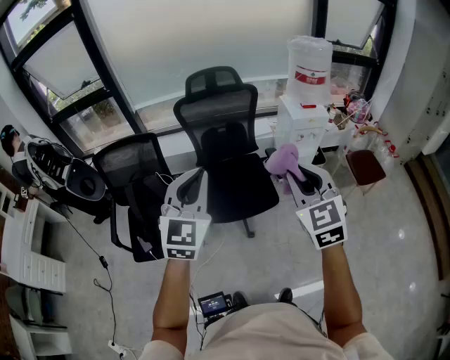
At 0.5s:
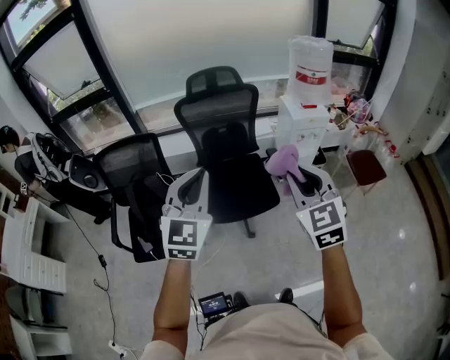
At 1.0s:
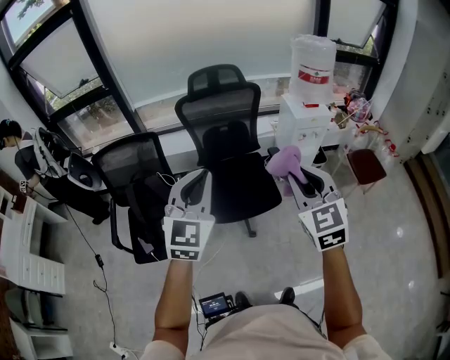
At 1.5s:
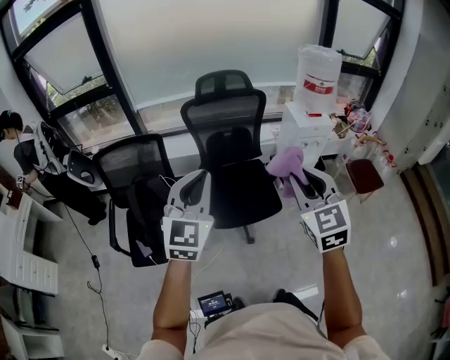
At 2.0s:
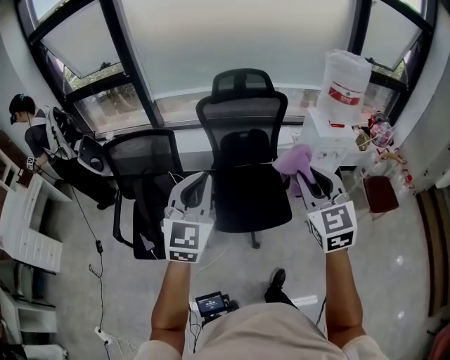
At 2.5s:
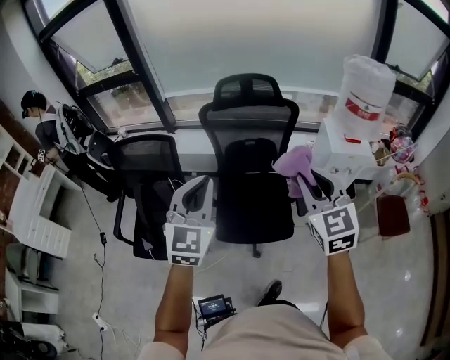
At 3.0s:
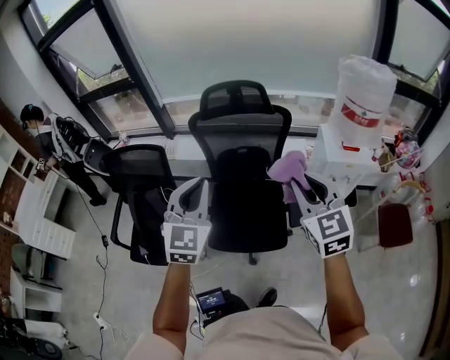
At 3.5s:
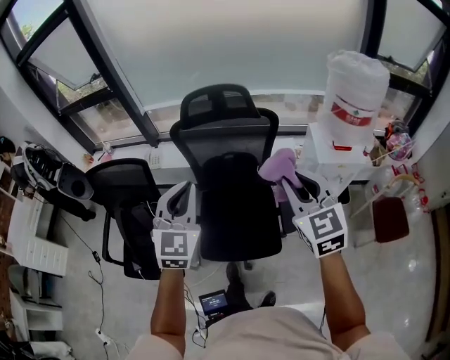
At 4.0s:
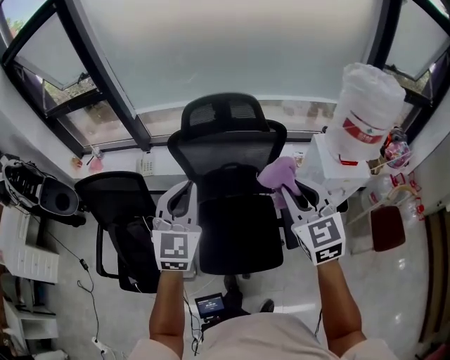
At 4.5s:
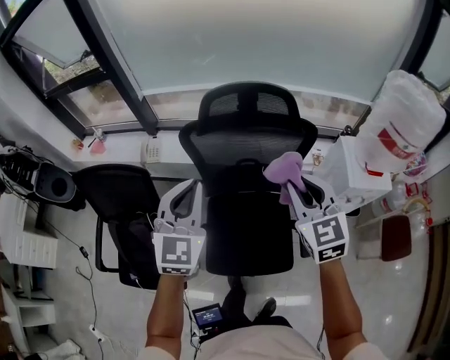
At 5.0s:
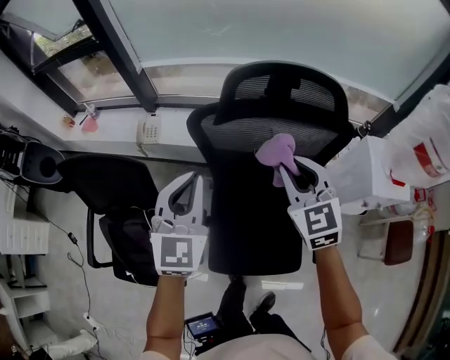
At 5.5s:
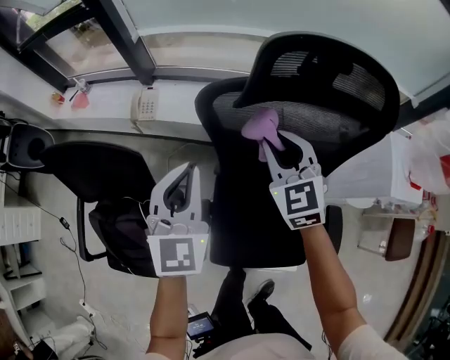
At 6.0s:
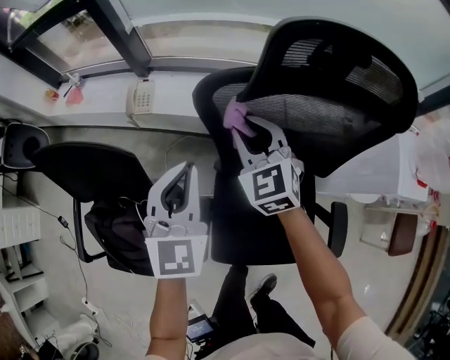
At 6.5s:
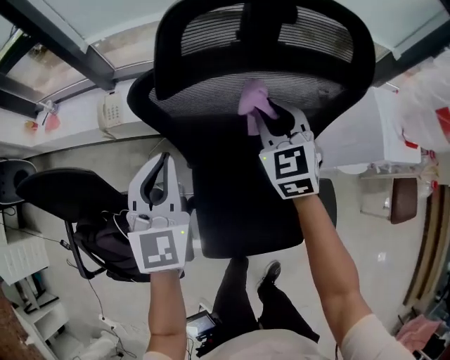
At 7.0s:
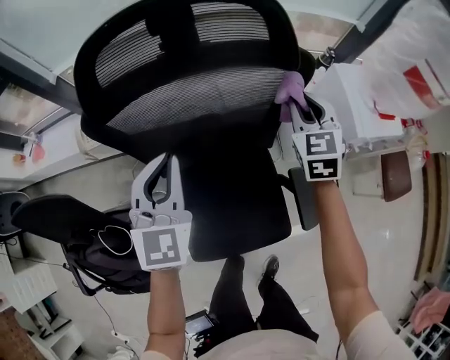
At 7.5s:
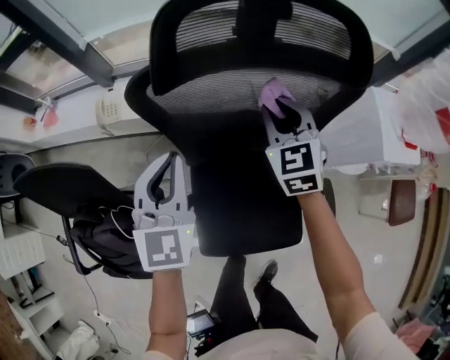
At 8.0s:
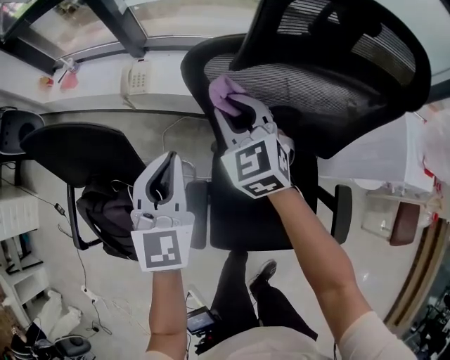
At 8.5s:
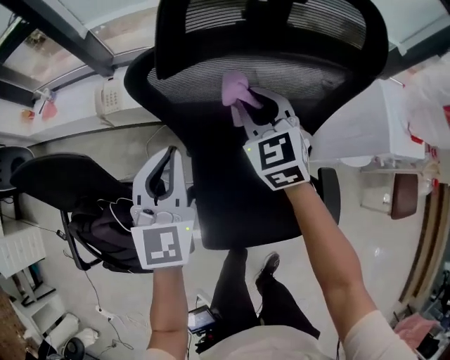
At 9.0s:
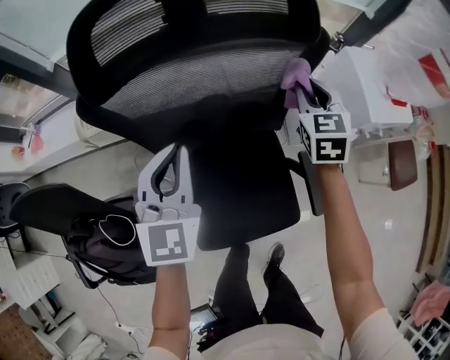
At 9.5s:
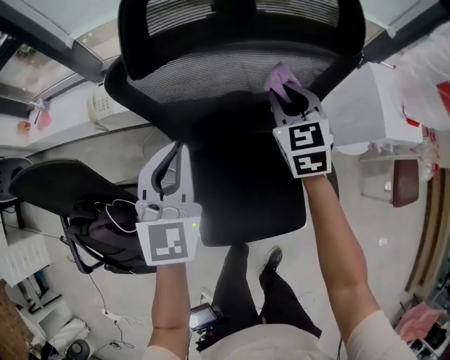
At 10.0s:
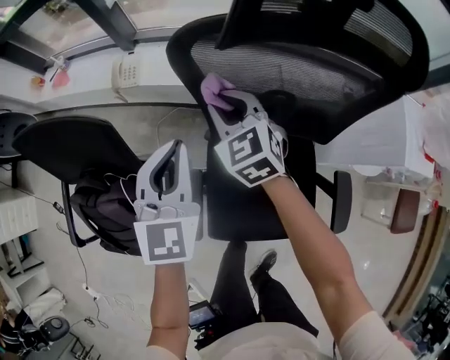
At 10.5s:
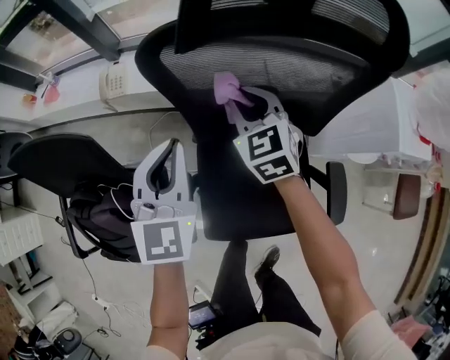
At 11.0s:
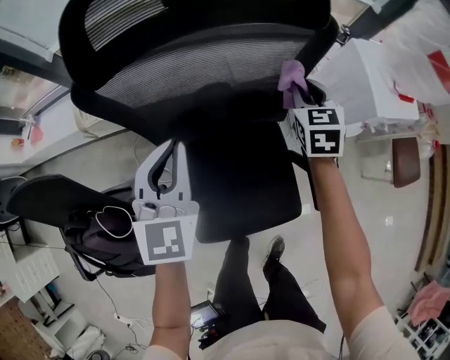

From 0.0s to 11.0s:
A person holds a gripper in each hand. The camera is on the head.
From 0.0s to 2.0s: The right gripper is displaced forward by roughly 10 cm; the left gripper is displaced forward and to the left by about 10 cm.
From 2.0s to 3.5s: Both grippers move forward and to the right, some 25 cm.
From 3.5s to 5.5s: The right gripper heads forward, to the left and downward, covering about 50 cm. Meanwhile the left gripper travels forward, downward and to the left by about 40 cm.
From 5.5s to 7.5s: The left gripper heads to the right and downward, covering some 10 cm, while the right gripper swings left and right, roughly 40 cm each way, with 2 reversals.
From 7.5s to 9.0s: The left gripper ends up roughly 10 cm from where it was. The right gripper changes place by about 20 cm, and rotates some 20 degrees.

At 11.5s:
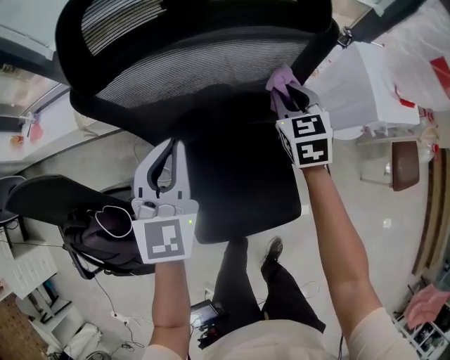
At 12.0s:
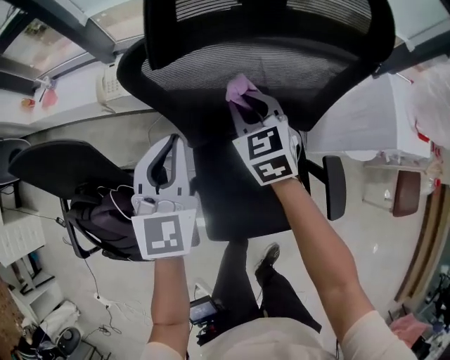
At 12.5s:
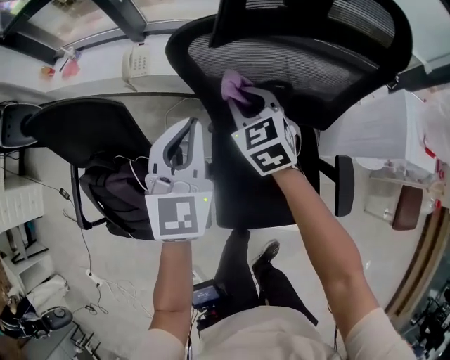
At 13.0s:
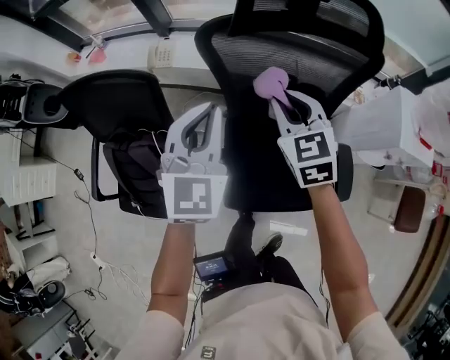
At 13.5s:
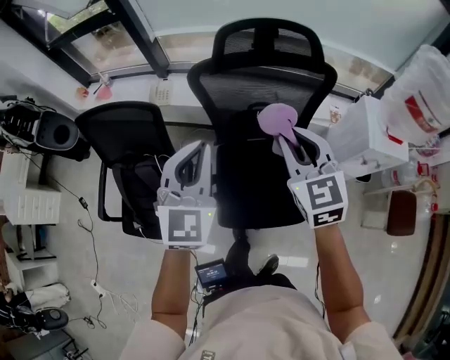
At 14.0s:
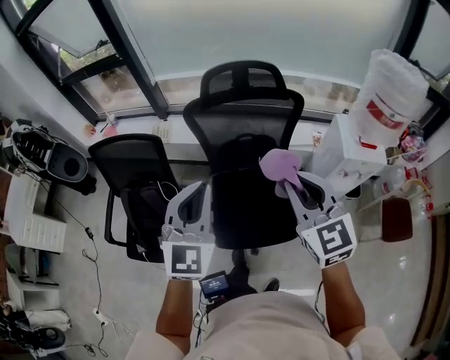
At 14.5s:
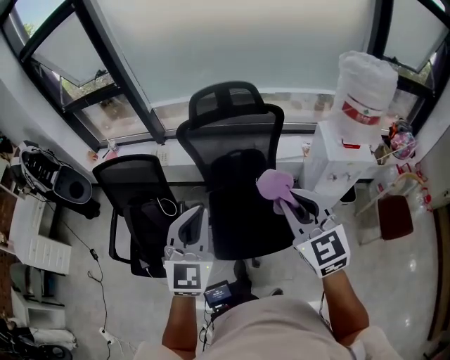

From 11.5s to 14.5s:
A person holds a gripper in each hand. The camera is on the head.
From 11.5s to 13.0s: The right gripper shifts roughly 30 cm to the left and upward, and rotates approximately 30 degrees, while the left gripper shifts some 20 cm to the left, upward and backward.
From 13.0s to 14.5s: The left gripper heads backward and upward, covering roughly 35 cm. Meanwhile the right gripper moves backward, upward and to the right, some 50 cm.

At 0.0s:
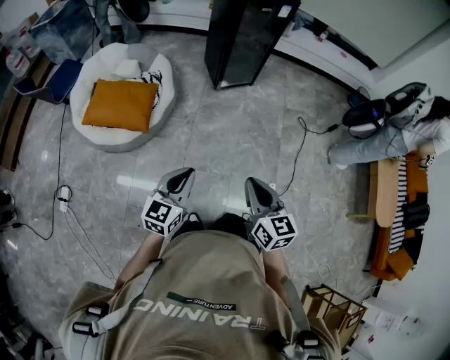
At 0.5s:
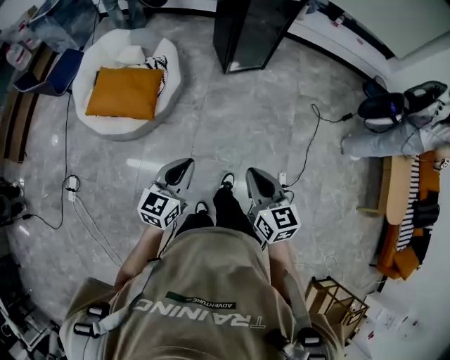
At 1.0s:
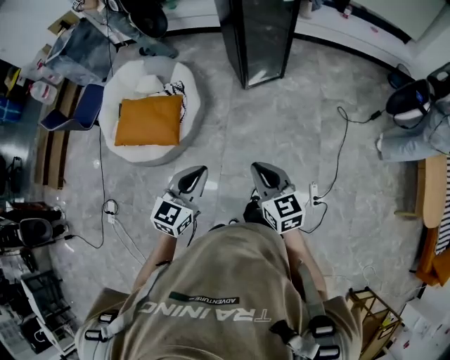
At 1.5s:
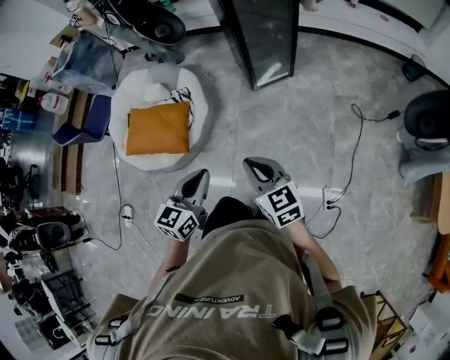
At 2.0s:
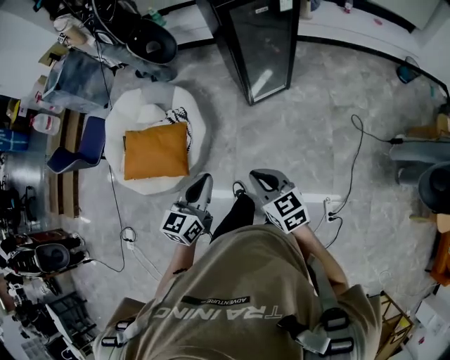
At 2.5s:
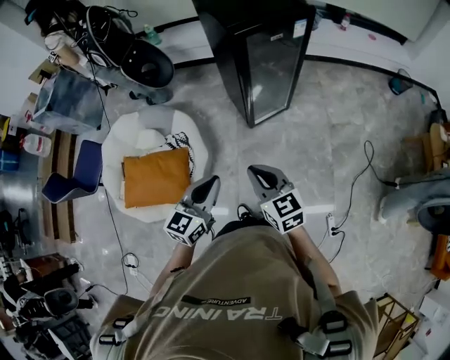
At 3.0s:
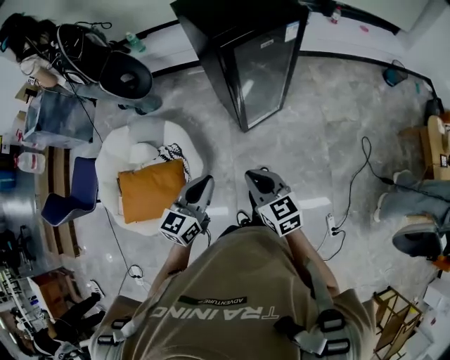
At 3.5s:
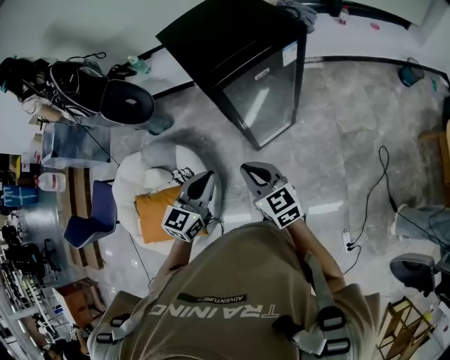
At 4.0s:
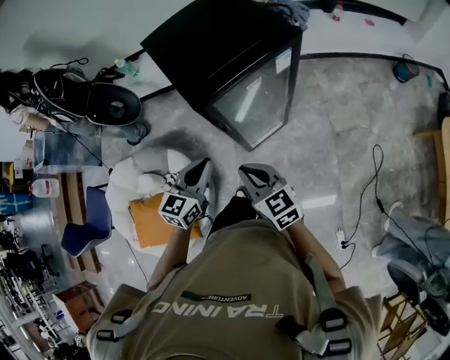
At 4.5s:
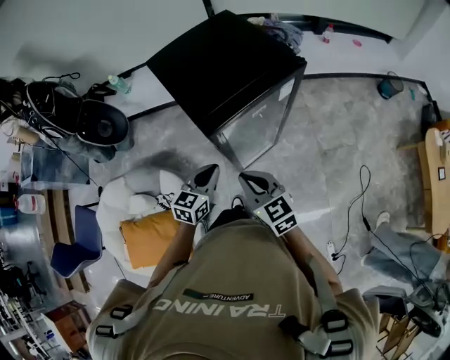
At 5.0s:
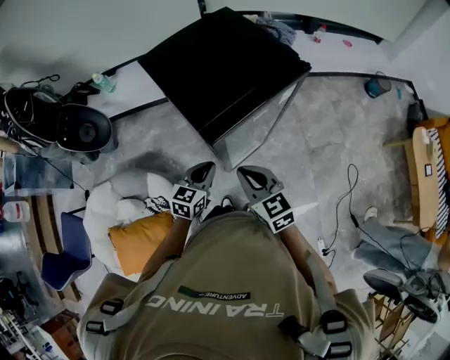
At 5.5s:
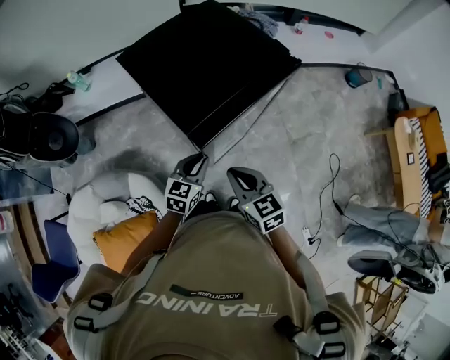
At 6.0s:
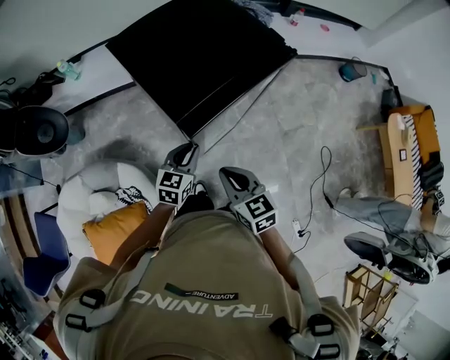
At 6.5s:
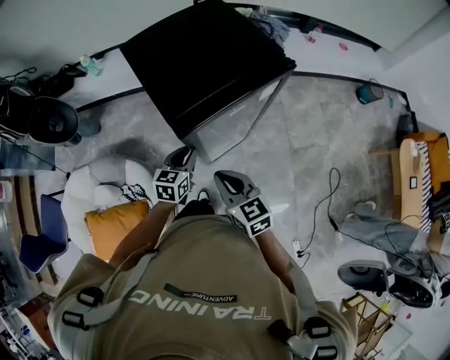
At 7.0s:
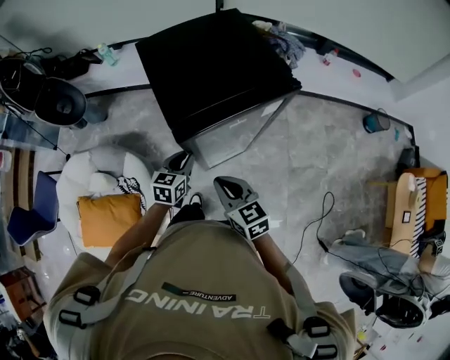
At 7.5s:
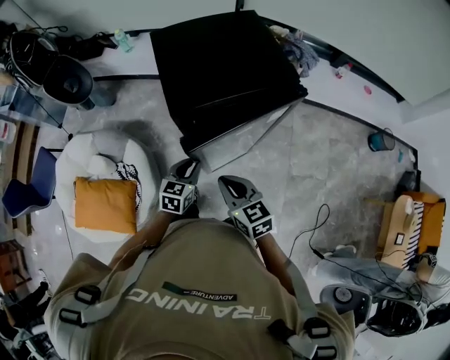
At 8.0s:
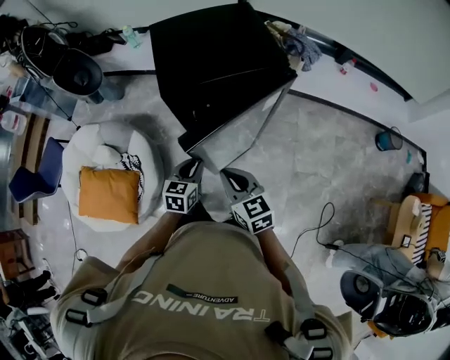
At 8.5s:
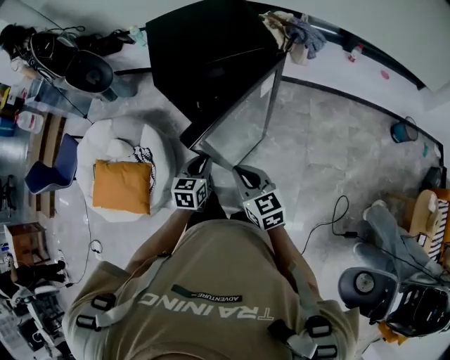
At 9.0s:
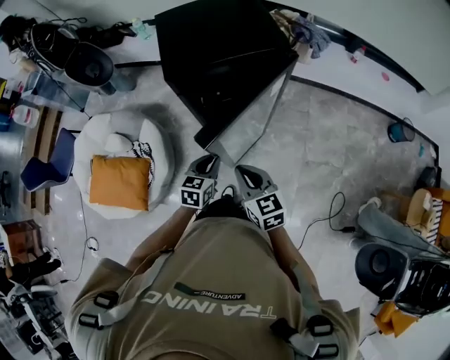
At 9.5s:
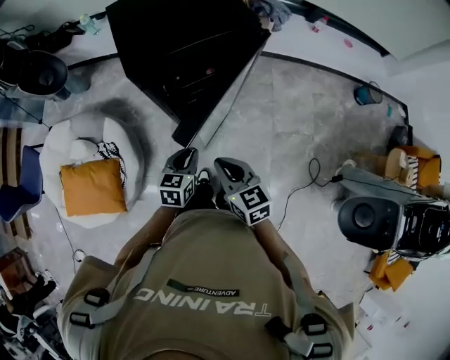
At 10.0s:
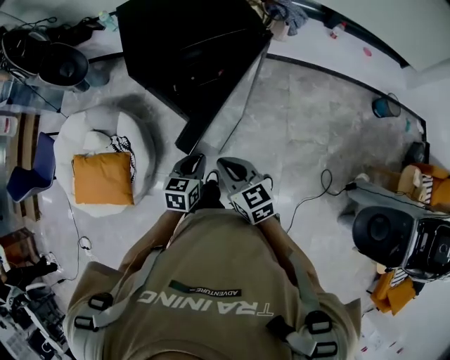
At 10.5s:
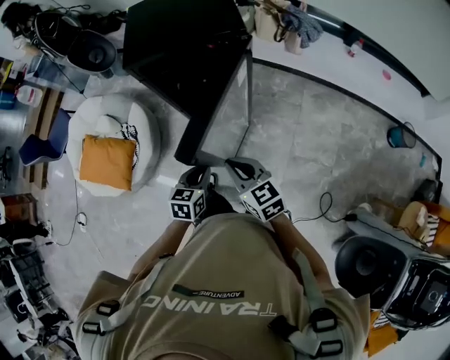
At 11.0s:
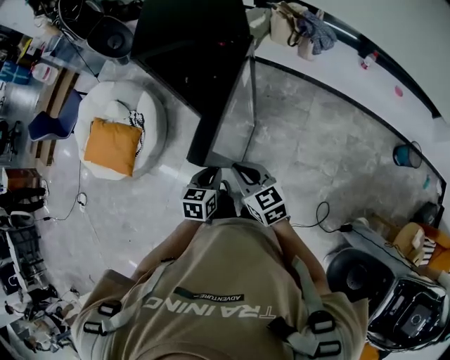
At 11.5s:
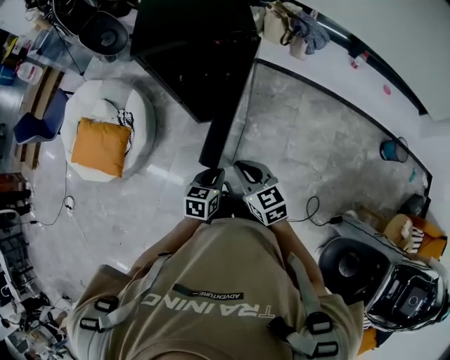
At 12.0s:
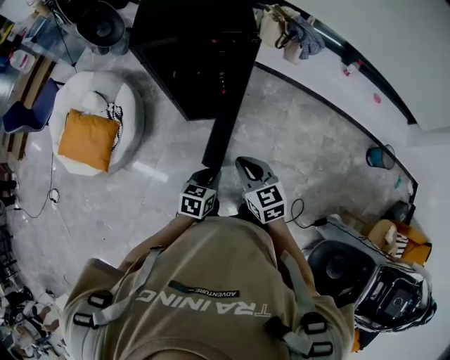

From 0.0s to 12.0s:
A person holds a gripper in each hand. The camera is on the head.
From 0.0s to 2.0s: Both grippers travel together forward, some 30 cm.
From 2.0s to 4.0s: The grippers both shift forward by about 40 cm.
From 4.0s to 6.0s: The right gripper heads forward, covering about 5 cm, while the left gripper travels forward and downward by some 15 cm.
From 6.0s to 8.0s: The left gripper shifts by about 10 cm, and swivels approximately 30 degrees; the right gripper shifts by about 10 cm, and changes its angle by roughly 20 degrees.
From 8.0s to 10.0s: The two grippers go some 10 cm backward and to the right.
From 10.0s to 12.0s: The right gripper moves to the right, about 15 cm; the left gripper goes about 20 cm to the right and backward.

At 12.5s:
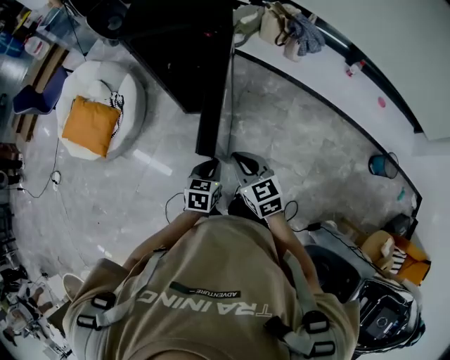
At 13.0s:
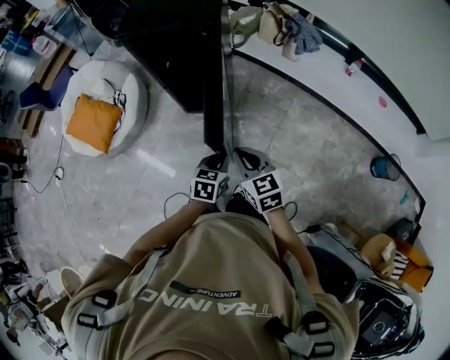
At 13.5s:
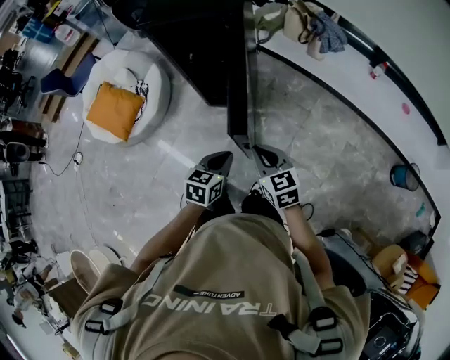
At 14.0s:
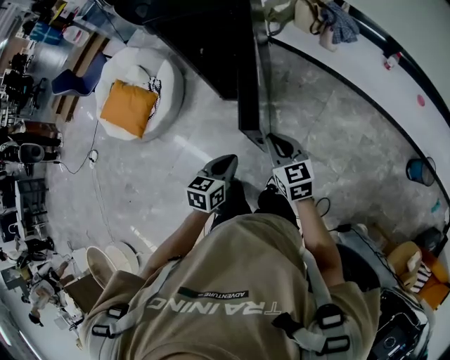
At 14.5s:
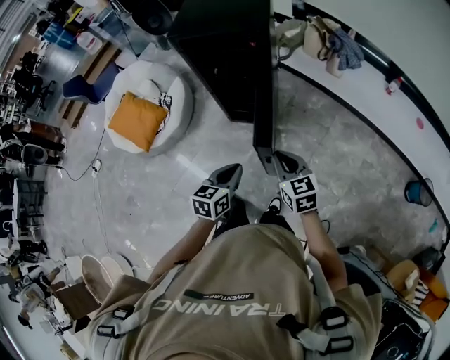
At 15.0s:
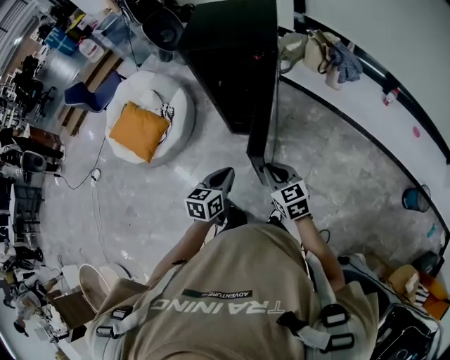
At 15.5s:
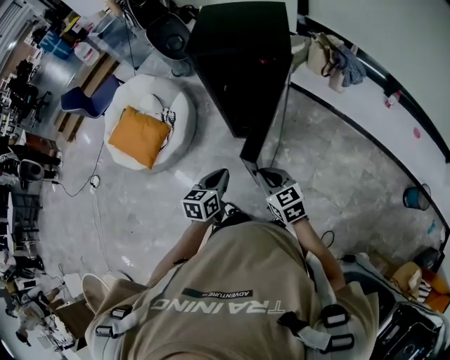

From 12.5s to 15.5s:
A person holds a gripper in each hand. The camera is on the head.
From 12.5s to 14.0s: The left gripper heads backward, covering approximately 5 cm.
From 14.0s to 15.5s: The right gripper goes roughly 15 cm to the left. The left gripper heads to the left and forward, covering approximately 15 cm.
